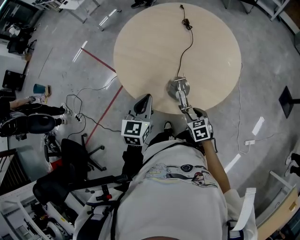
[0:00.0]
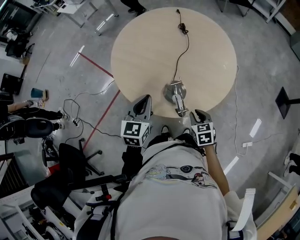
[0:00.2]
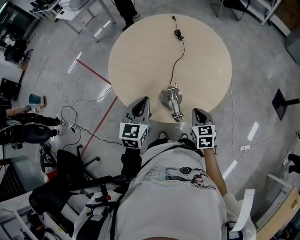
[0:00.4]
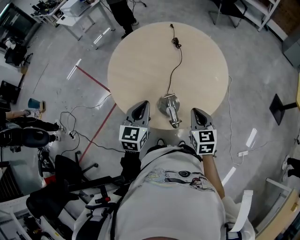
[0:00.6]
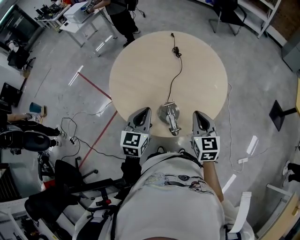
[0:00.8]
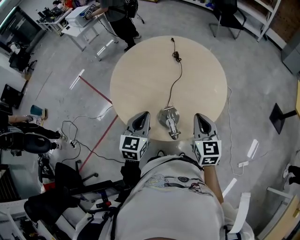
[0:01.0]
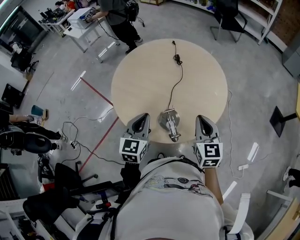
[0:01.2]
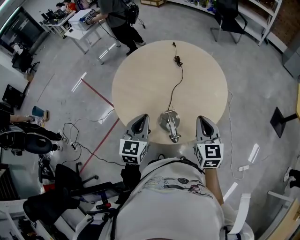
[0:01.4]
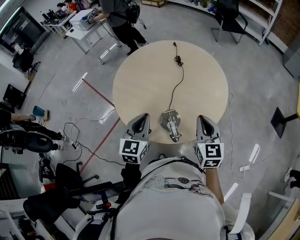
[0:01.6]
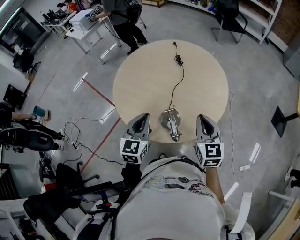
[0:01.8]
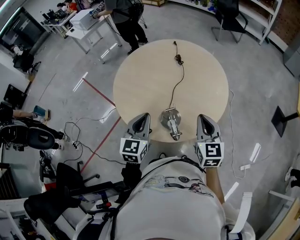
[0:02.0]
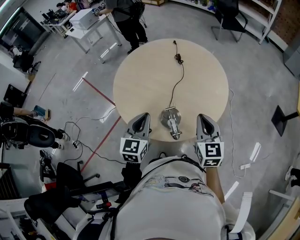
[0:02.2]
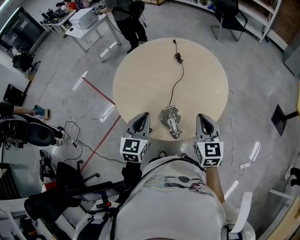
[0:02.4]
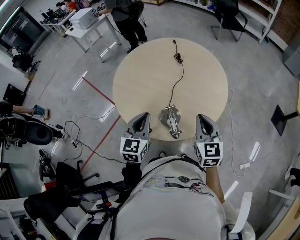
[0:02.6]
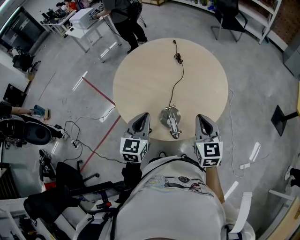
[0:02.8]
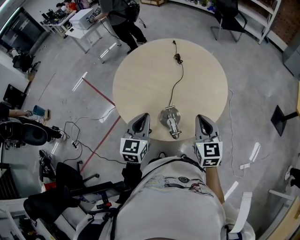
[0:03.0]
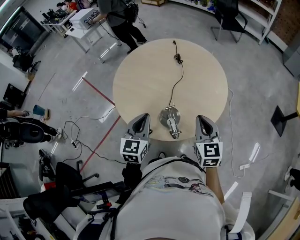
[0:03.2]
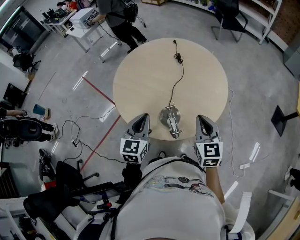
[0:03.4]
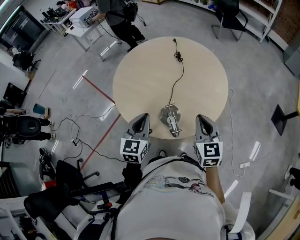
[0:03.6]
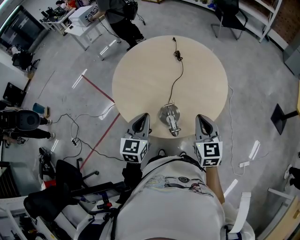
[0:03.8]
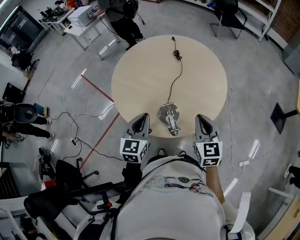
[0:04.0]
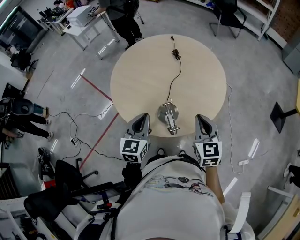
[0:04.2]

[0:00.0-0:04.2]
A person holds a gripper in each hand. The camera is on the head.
0:00.0 to 0:01.4: The left gripper heads upward, covering some 5 cm, while the right gripper travels upward by approximately 25 cm, points its fingers some 40 degrees further upward, and closes its fingers.
0:01.4 to 0:02.8: Both grippers stay about where they are.
0:02.8 to 0:04.2: The grippers stay close to where they were, moving slightly.

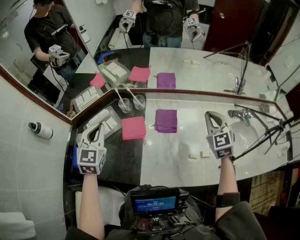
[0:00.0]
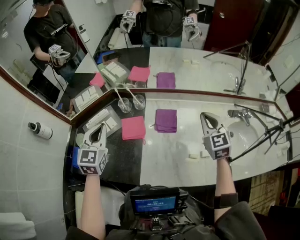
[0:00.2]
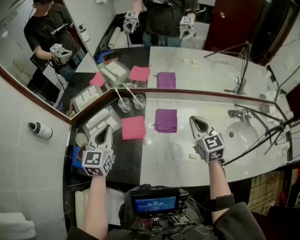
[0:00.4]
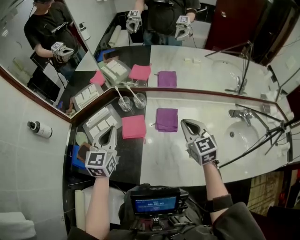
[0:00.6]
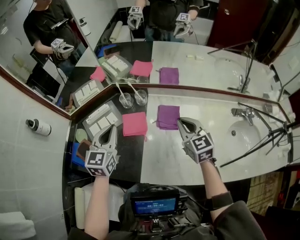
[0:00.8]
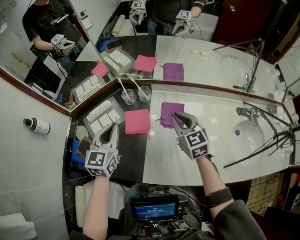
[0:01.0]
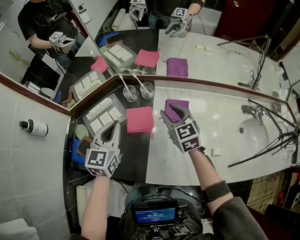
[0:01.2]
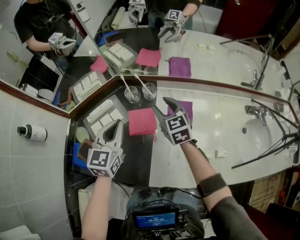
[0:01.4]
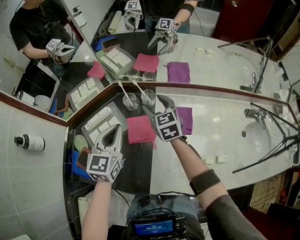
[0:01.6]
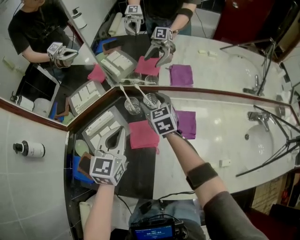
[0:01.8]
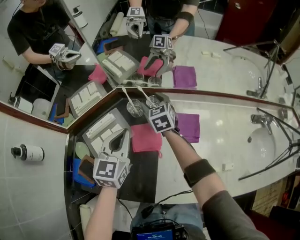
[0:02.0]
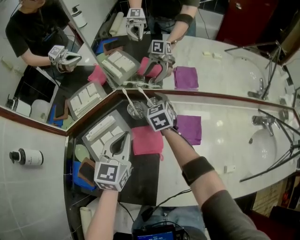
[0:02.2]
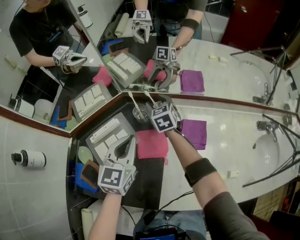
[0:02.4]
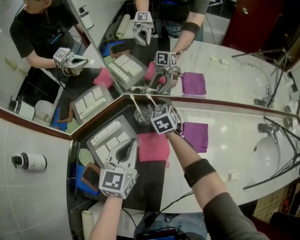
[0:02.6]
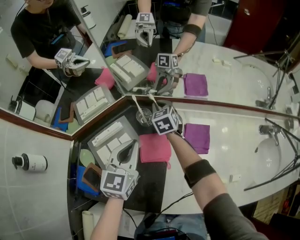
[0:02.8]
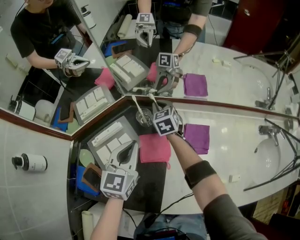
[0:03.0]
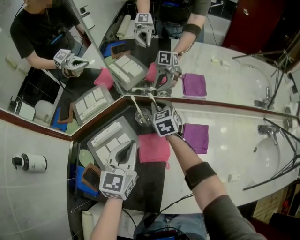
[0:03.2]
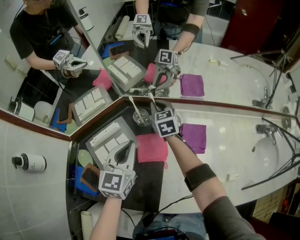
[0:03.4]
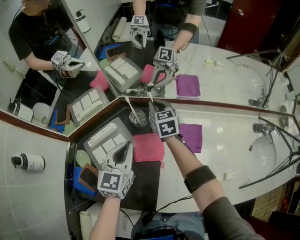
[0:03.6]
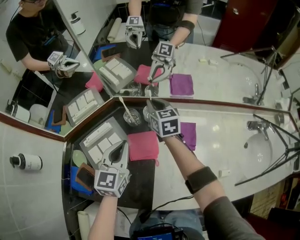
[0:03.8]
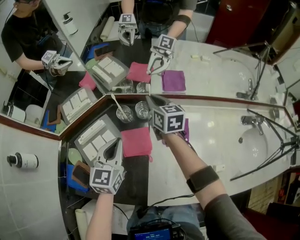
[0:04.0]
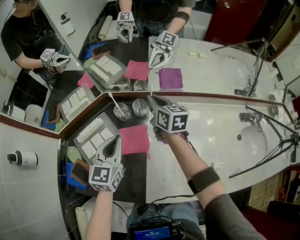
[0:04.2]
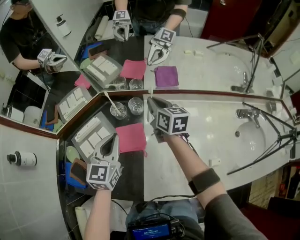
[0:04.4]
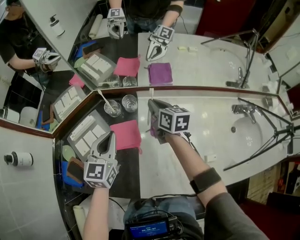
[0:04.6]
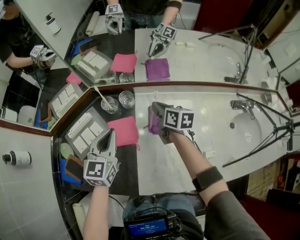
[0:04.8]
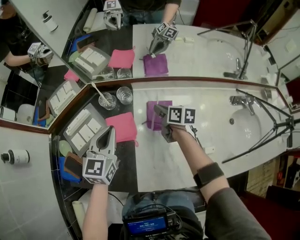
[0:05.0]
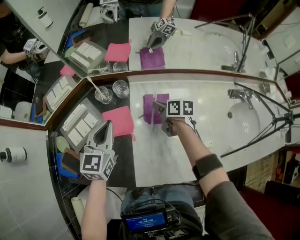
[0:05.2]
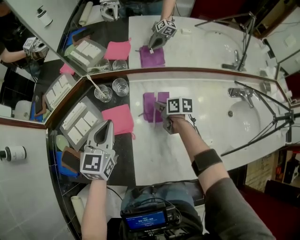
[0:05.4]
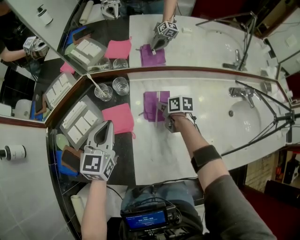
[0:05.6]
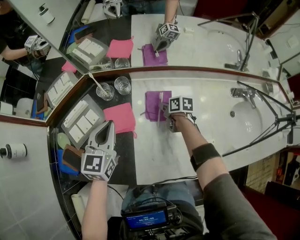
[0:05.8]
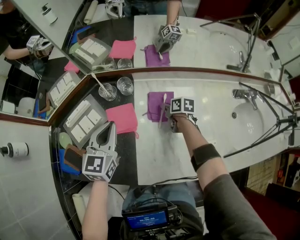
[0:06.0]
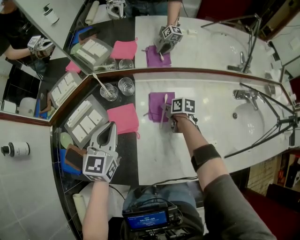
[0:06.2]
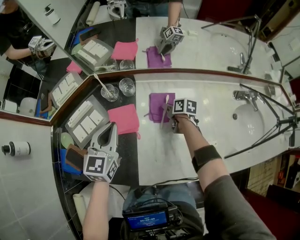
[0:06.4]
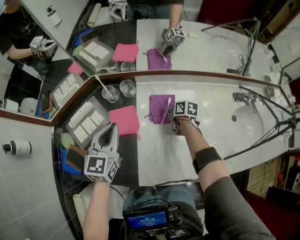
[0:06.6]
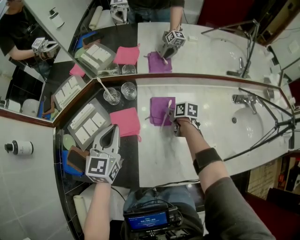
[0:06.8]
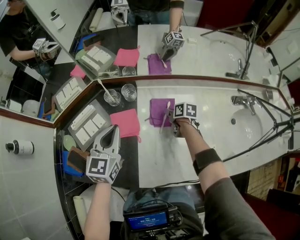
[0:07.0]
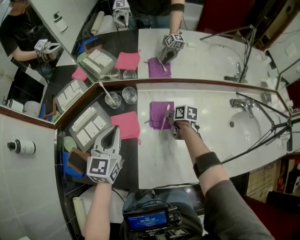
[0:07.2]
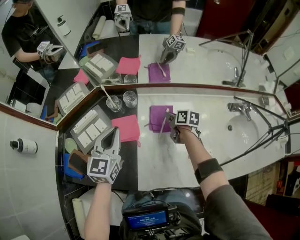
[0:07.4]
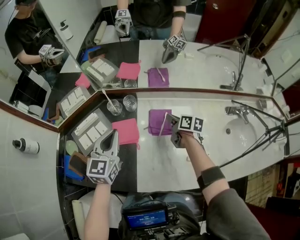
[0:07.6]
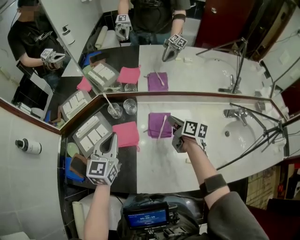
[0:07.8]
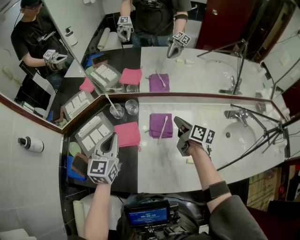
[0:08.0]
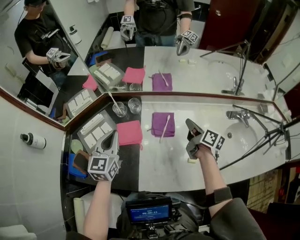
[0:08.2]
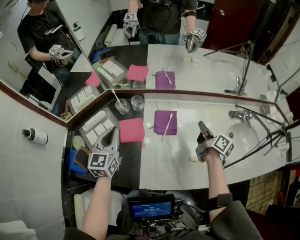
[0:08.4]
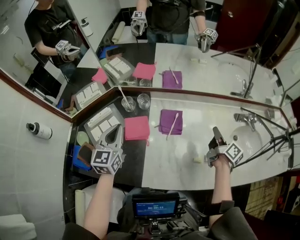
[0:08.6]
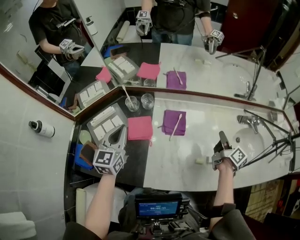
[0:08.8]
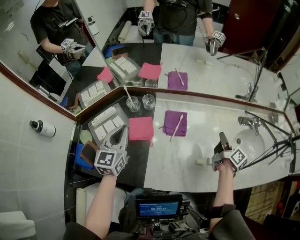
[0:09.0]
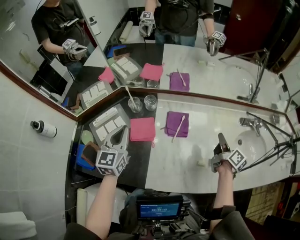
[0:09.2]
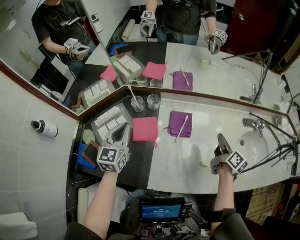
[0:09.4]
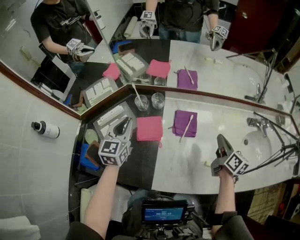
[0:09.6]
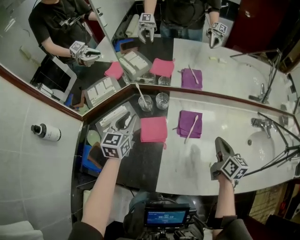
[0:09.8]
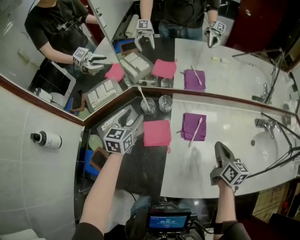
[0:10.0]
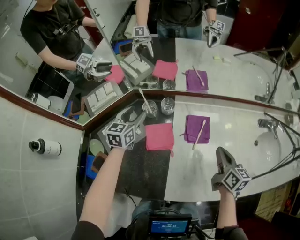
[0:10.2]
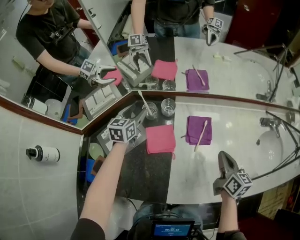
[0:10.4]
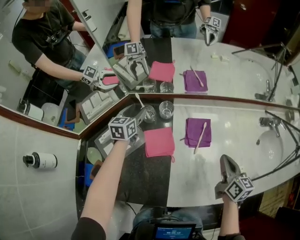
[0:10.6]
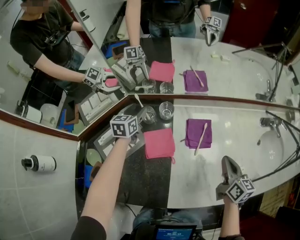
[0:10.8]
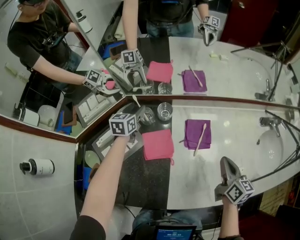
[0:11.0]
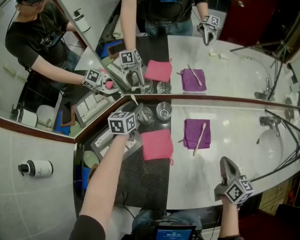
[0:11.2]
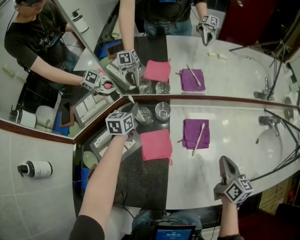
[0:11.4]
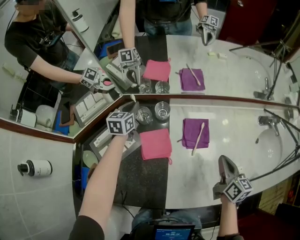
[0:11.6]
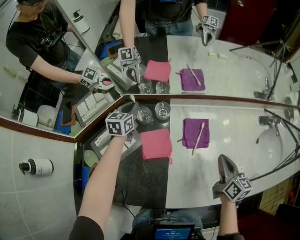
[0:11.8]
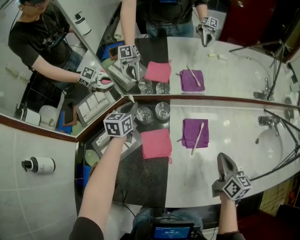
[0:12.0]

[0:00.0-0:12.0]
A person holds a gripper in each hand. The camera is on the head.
0:00.0 to 0:01.6: The right gripper heads to the left, forward and downward, covering approximately 35 cm, swivels about 20 degrees, and opens its fingers. The left gripper shifts some 10 cm downward and forward.
0:01.6 to 0:03.0: The left gripper moves roughly 5 cm, while the right gripper shifts about 15 cm forward, downward and to the left, and closes.
0:03.0 to 0:04.4: The right gripper goes approximately 20 cm to the right, upward and backward, and turns by roughly 30 degrees, while the left gripper shifts by roughly 5 cm.
0:04.4 to 0:06.0: The right gripper travels downward, backward and to the right by approximately 25 cm, and swivels roughly 40 degrees.
0:06.0 to 0:07.6: The right gripper heads upward, covering roughly 15 cm, while the left gripper moves upward, approximately 5 cm.
0:07.6 to 0:09.0: The right gripper travels to the right, backward and upward by roughly 25 cm, and changes its angle by roughly 40 degrees.
0:09.0 to 0:10.4: The right gripper goes some 15 cm to the left, and changes its angle by approximately 40 degrees, while the left gripper goes about 25 cm forward, downward and to the left, and opens.
0:10.4 to 0:12.0: The left gripper shifts about 5 cm forward, and closes.

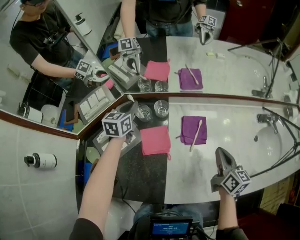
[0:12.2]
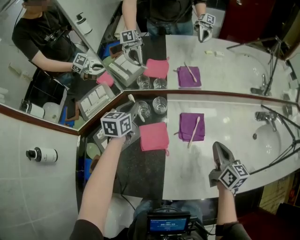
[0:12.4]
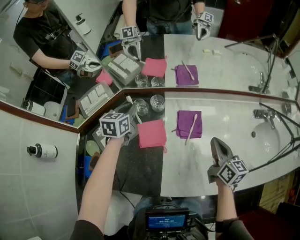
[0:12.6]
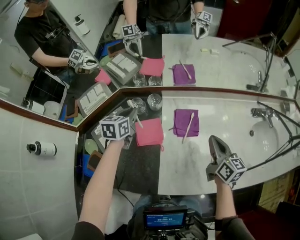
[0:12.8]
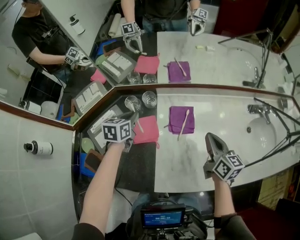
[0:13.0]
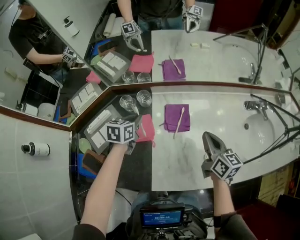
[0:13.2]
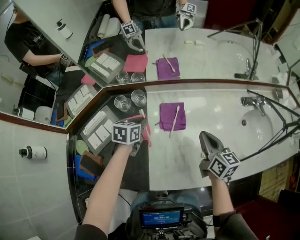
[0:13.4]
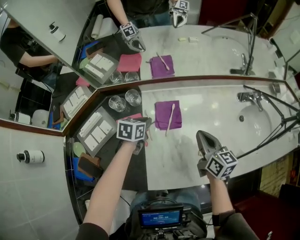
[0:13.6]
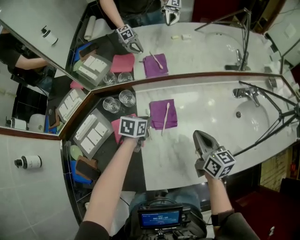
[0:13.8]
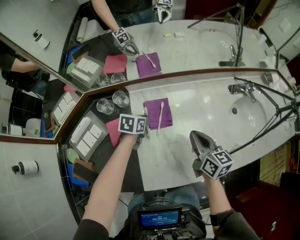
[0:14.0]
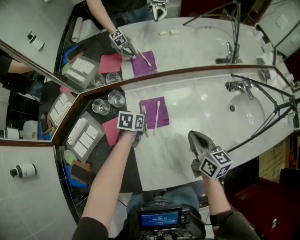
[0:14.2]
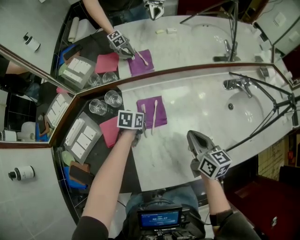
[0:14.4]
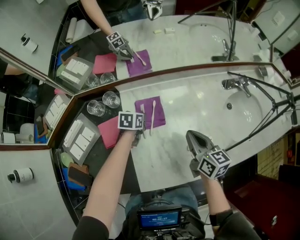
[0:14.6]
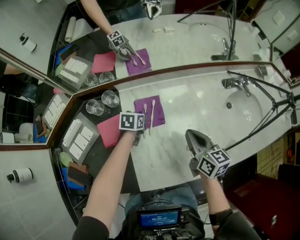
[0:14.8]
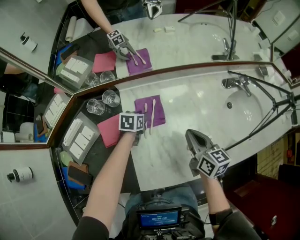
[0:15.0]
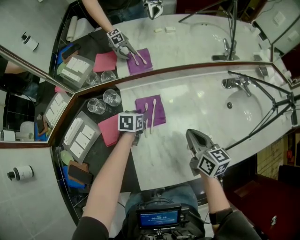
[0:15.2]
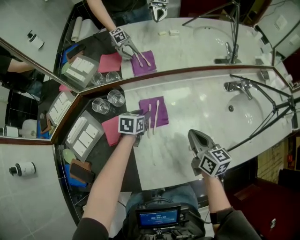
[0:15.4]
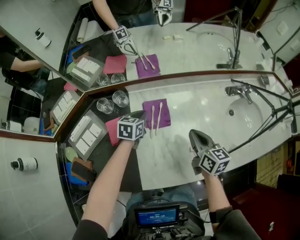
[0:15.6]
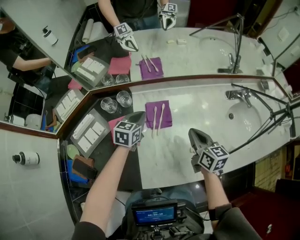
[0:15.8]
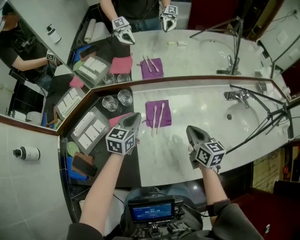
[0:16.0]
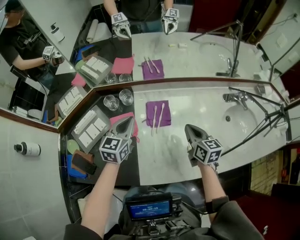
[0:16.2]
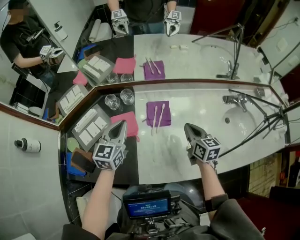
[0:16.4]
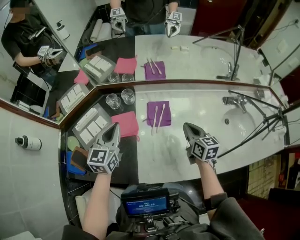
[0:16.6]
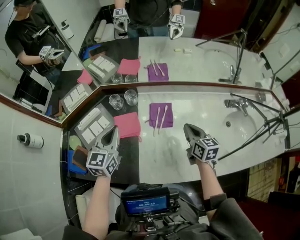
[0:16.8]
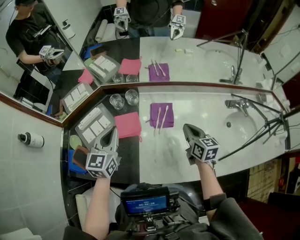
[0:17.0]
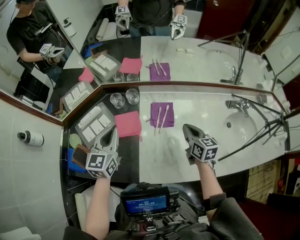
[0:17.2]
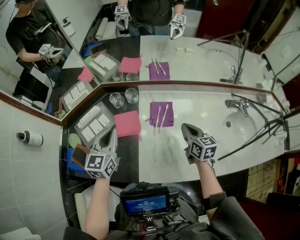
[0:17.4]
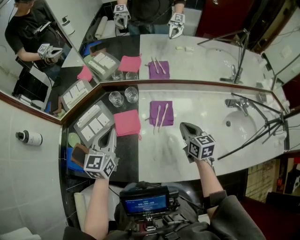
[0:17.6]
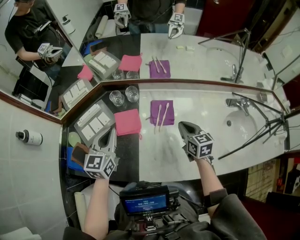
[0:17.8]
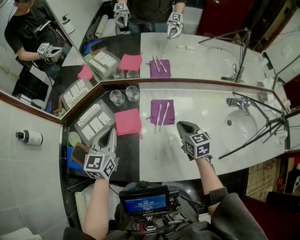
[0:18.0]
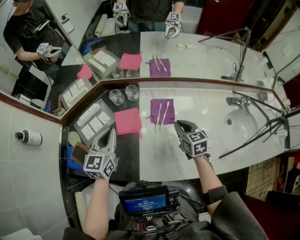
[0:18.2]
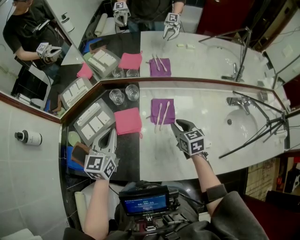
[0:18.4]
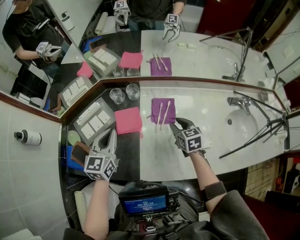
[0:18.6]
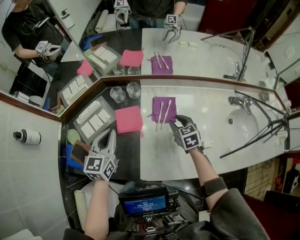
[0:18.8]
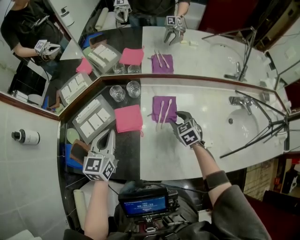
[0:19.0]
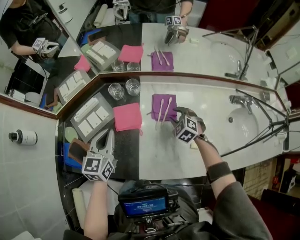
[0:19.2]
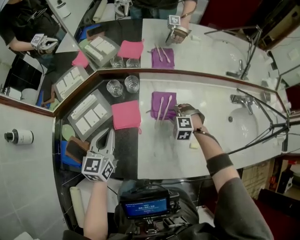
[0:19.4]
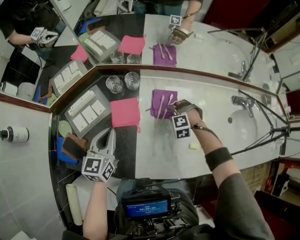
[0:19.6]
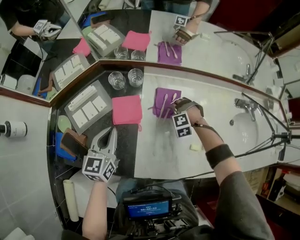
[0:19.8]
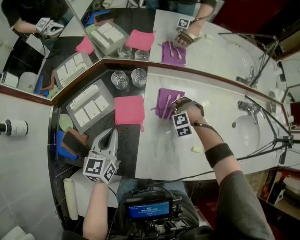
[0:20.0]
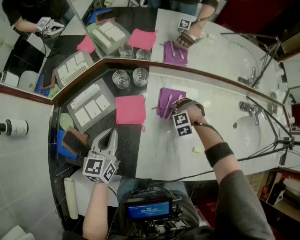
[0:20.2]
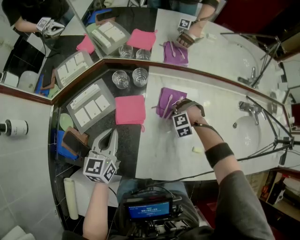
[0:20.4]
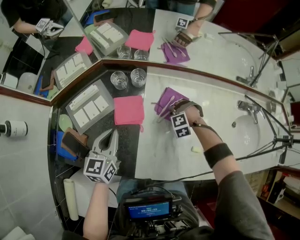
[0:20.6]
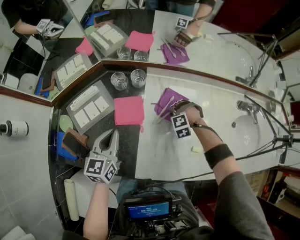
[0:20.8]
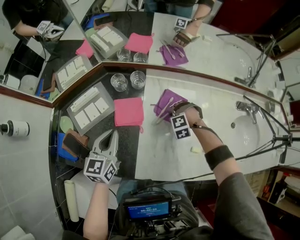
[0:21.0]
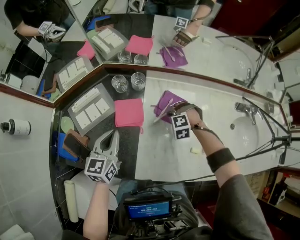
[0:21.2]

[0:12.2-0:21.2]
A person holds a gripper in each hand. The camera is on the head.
0:12.2 to 0:13.8: The left gripper shifts about 25 cm to the right and backward, and rotates about 30 degrees. Meanwhile the right gripper is displaced to the right by about 5 cm.
0:13.8 to 0:15.2: The left gripper heads downward, covering some 5 cm, and opens.
0:15.2 to 0:16.6: The left gripper goes roughly 30 cm upward, to the left and backward, angles its fingers upward, by about 30 degrees, and closes up.
0:16.6 to 0:18.2: The left gripper changes place by roughly 5 cm. Meanwhile the right gripper shifts approximately 5 cm to the left.
0:18.2 to 0:19.8: The left gripper heads downward, covering about 5 cm; the right gripper is displaced downward by approximately 15 cm, rotates around the line of its fingers by about 100 degrees, counterclockwise from behind, and opens up.
0:19.8 to 0:21.2: The right gripper closes.
